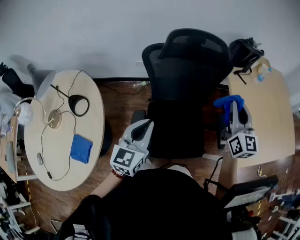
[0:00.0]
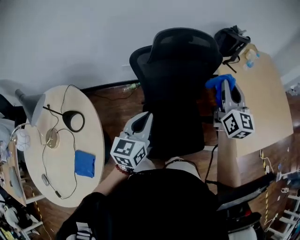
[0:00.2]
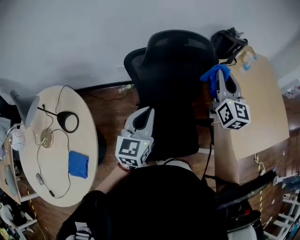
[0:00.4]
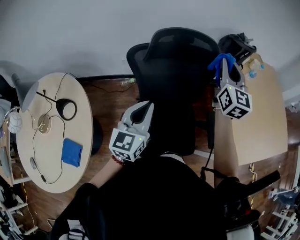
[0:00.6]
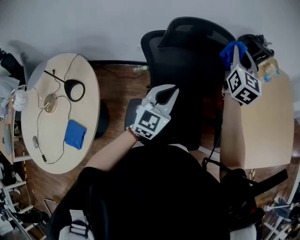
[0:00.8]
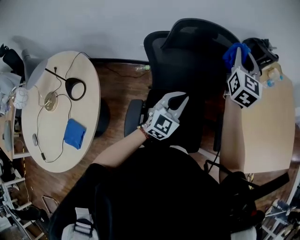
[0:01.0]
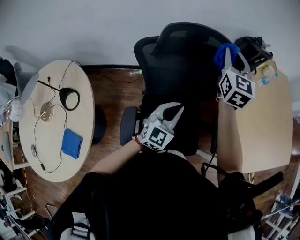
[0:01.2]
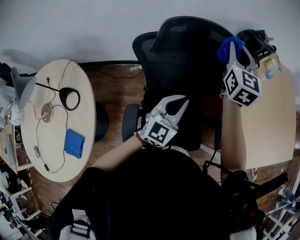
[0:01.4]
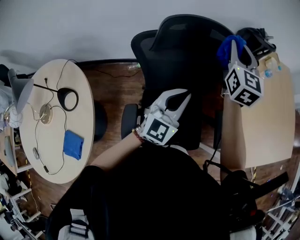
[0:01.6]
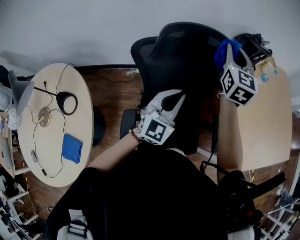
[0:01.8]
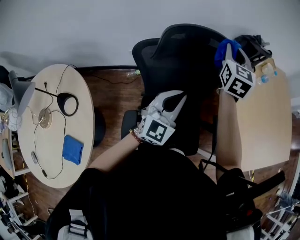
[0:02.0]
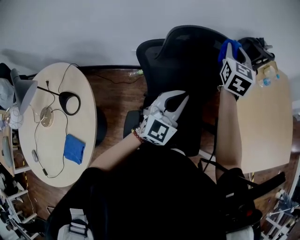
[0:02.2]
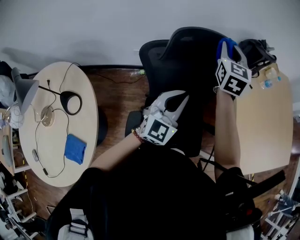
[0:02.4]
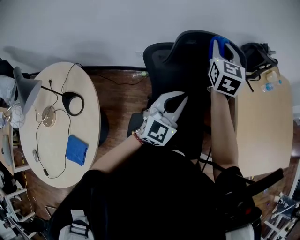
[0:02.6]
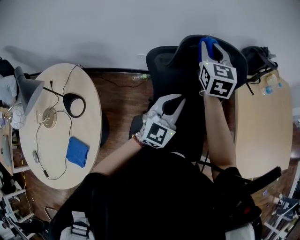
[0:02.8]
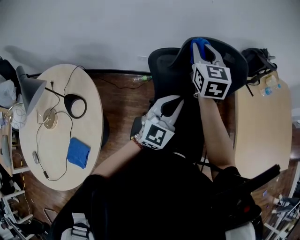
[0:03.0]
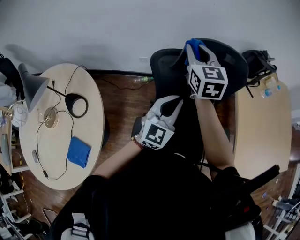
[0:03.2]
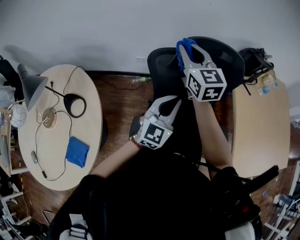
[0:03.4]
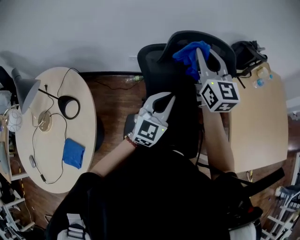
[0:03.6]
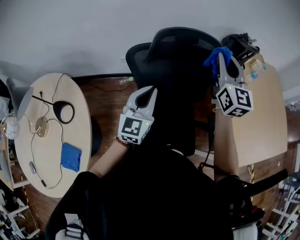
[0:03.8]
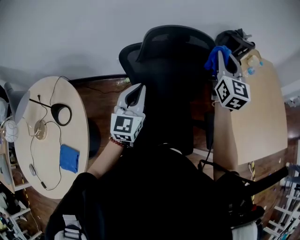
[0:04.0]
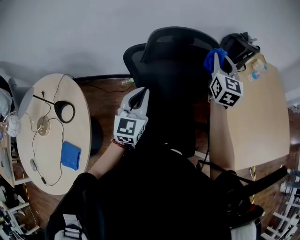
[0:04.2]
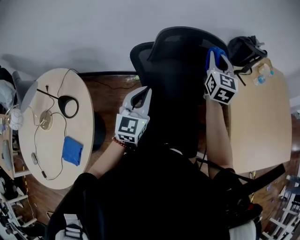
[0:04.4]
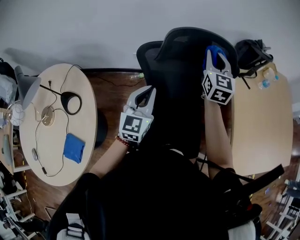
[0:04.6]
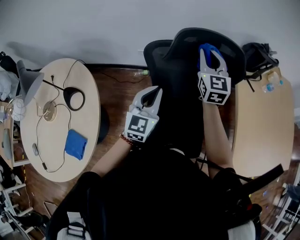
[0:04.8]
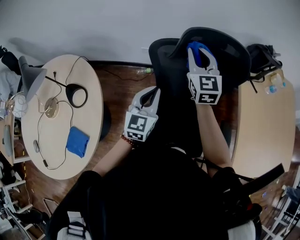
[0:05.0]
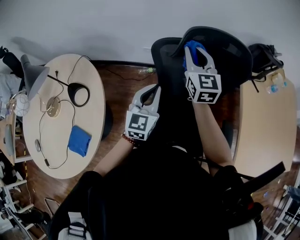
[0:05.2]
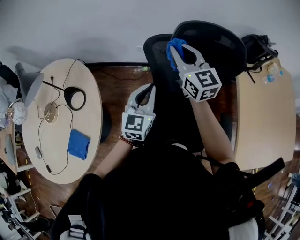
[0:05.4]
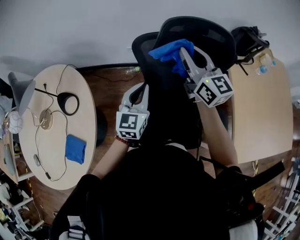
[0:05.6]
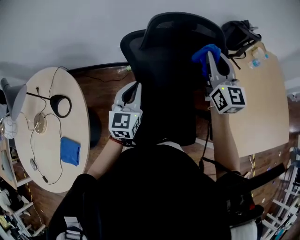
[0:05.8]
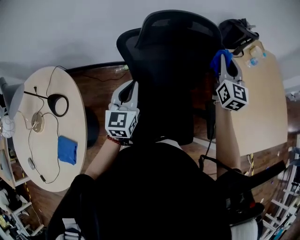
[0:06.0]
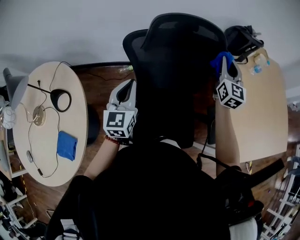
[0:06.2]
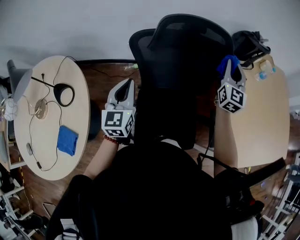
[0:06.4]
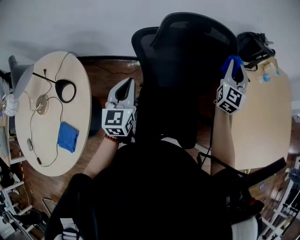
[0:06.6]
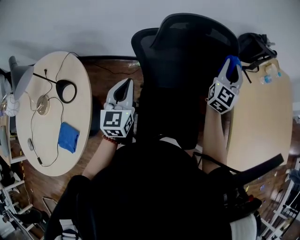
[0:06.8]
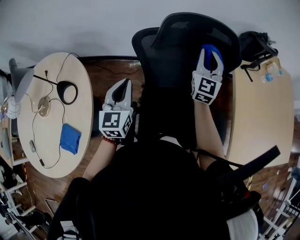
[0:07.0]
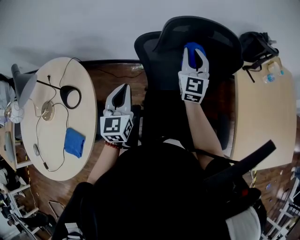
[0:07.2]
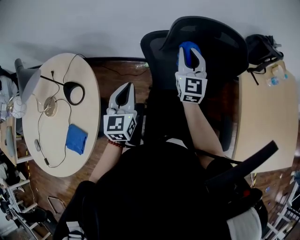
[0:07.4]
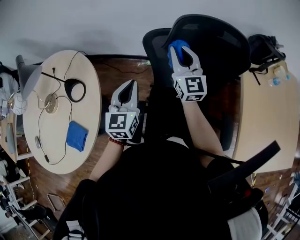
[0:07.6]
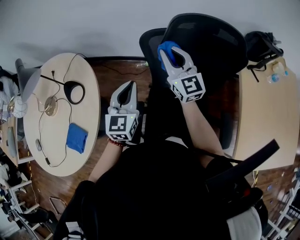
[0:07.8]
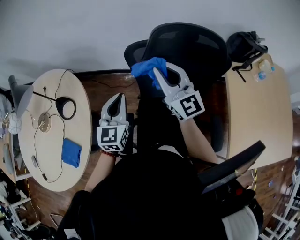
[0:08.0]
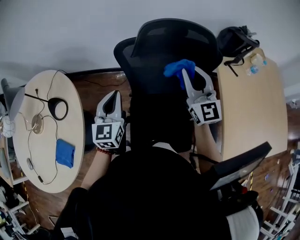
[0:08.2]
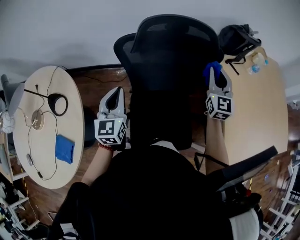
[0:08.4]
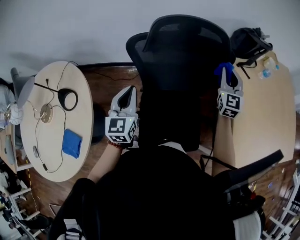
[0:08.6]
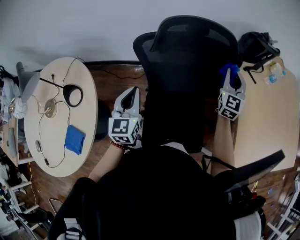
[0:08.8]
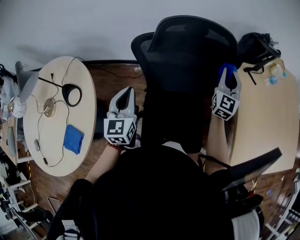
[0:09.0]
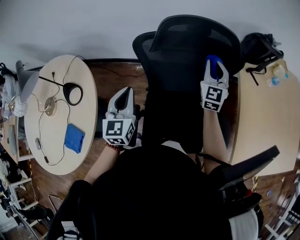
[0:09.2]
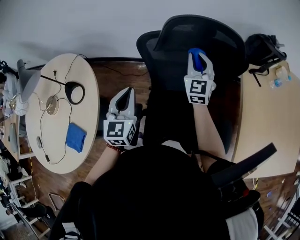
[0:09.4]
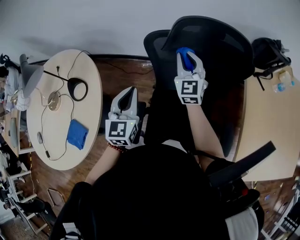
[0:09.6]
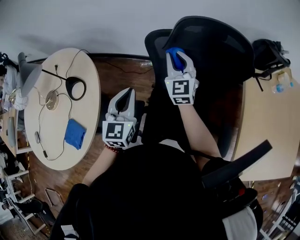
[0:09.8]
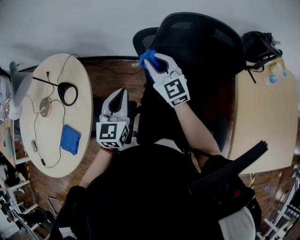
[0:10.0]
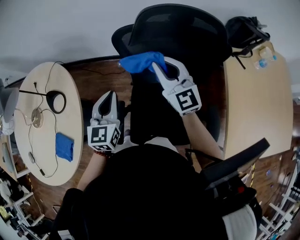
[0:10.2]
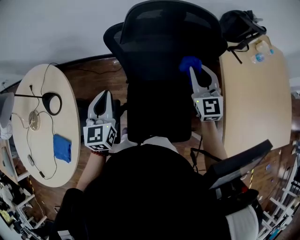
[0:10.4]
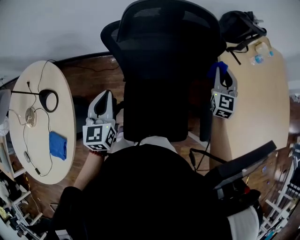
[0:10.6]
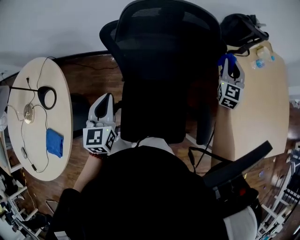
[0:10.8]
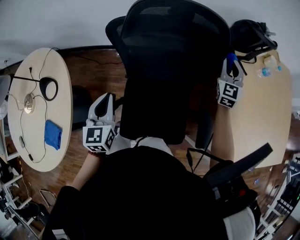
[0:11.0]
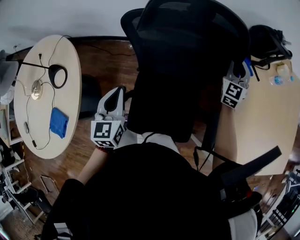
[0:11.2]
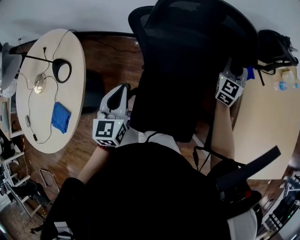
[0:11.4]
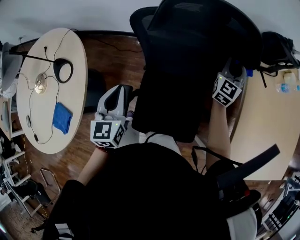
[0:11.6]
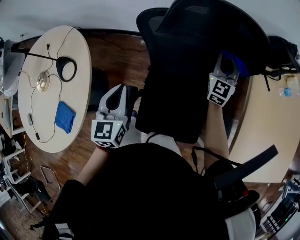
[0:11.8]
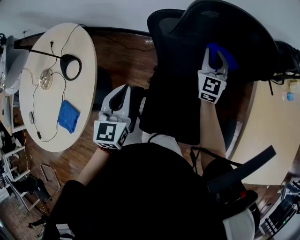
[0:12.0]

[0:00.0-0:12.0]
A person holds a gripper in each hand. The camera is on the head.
0:00.0 to 0:01.6: The left gripper shifts roughly 20 cm forward and to the right, and turns by about 20 degrees. The right gripper is displaced forward and to the left by approximately 25 cm.
0:01.6 to 0:03.0: The left gripper heads to the left, covering approximately 10 cm, while the right gripper heads to the left, covering about 20 cm.
0:03.0 to 0:04.4: The right gripper swings left and right, about 25 cm each way, with 2 reversals.
0:04.4 to 0:06.0: The right gripper moves backward, roughly 5 cm, and reaches roughly 20 cm to the left, then returns.
0:06.0 to 0:07.6: The right gripper is displaced to the left by some 30 cm, and swivels roughly 30 degrees, while the left gripper shifts some 10 cm to the left.
0:07.6 to 0:09.0: The right gripper goes about 25 cm to the right, and changes its angle by roughly 30 degrees.
0:09.0 to 0:10.4: The right gripper moves some 35 cm to the left and comes back, and turns by roughly 20 degrees.
0:10.4 to 0:12.0: The right gripper moves forward and downward, roughly 15 cm, and reaches roughly 20 cm to the right, then returns.

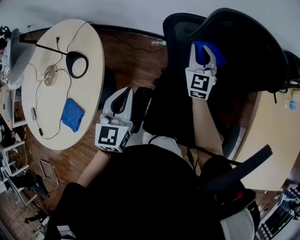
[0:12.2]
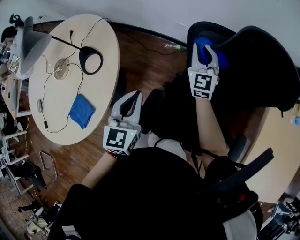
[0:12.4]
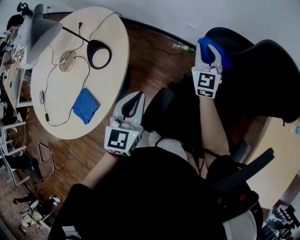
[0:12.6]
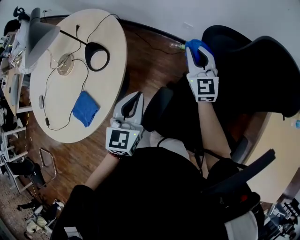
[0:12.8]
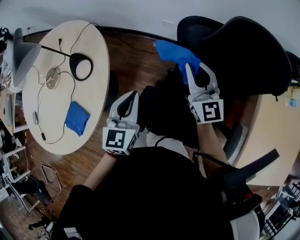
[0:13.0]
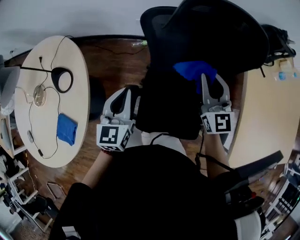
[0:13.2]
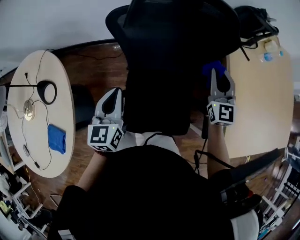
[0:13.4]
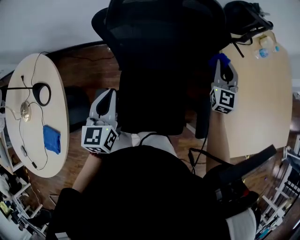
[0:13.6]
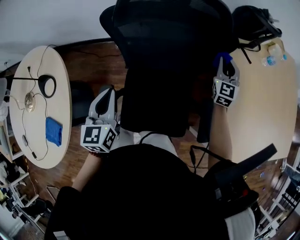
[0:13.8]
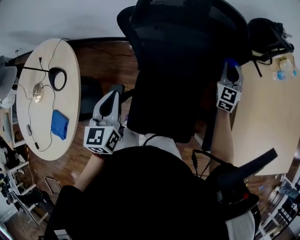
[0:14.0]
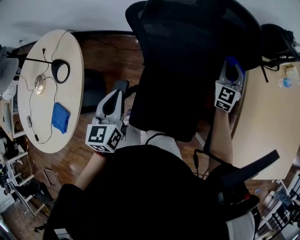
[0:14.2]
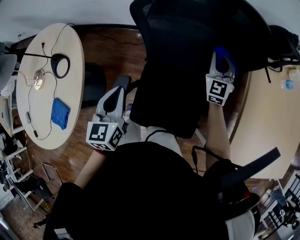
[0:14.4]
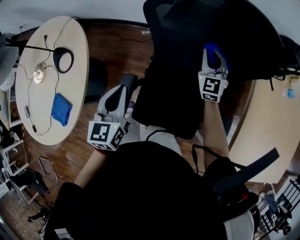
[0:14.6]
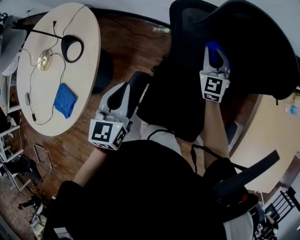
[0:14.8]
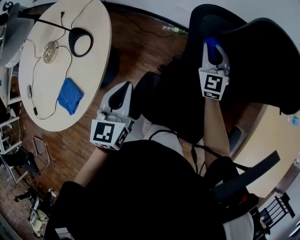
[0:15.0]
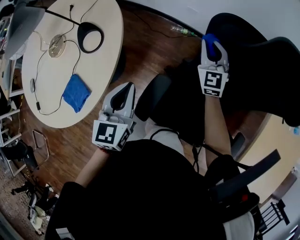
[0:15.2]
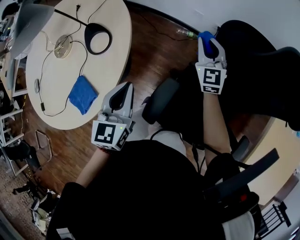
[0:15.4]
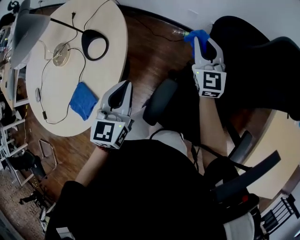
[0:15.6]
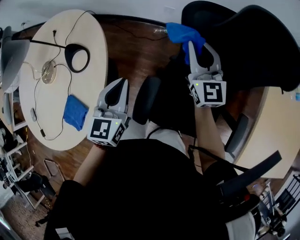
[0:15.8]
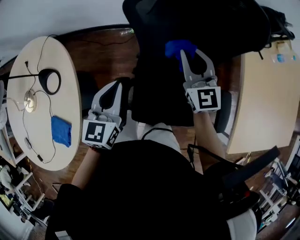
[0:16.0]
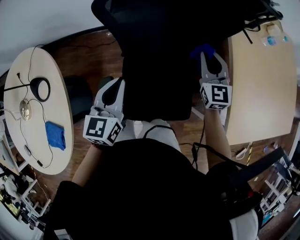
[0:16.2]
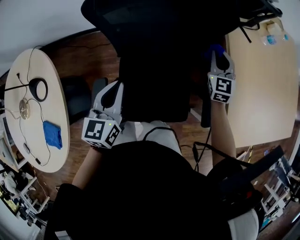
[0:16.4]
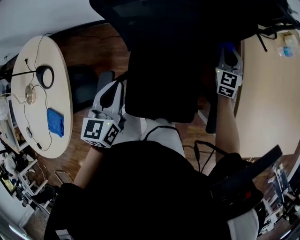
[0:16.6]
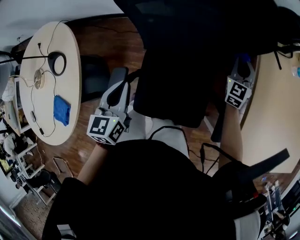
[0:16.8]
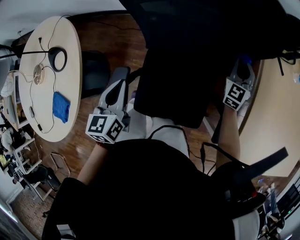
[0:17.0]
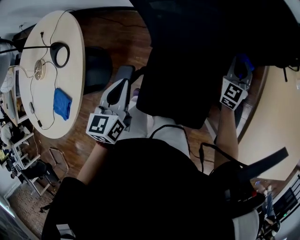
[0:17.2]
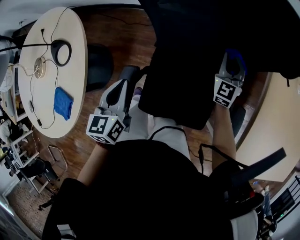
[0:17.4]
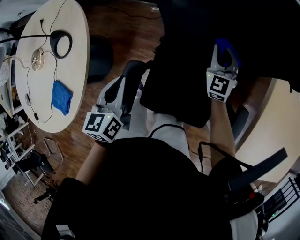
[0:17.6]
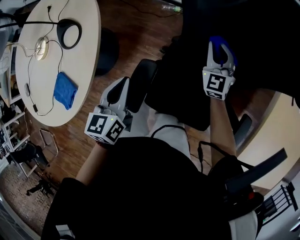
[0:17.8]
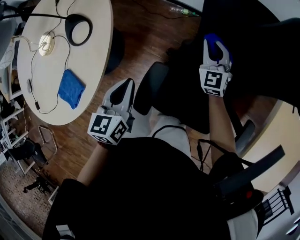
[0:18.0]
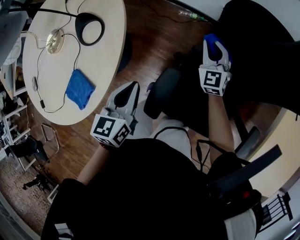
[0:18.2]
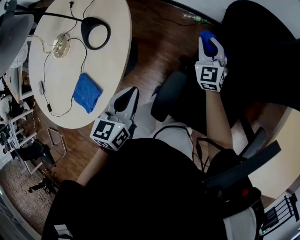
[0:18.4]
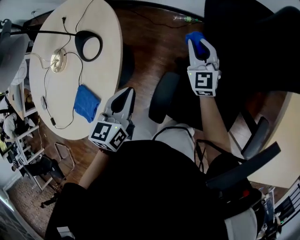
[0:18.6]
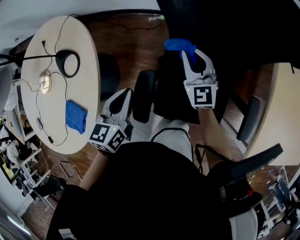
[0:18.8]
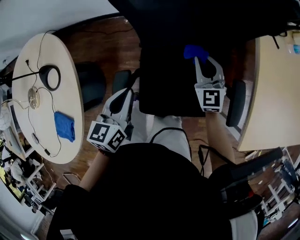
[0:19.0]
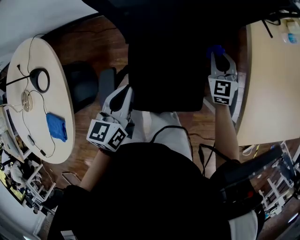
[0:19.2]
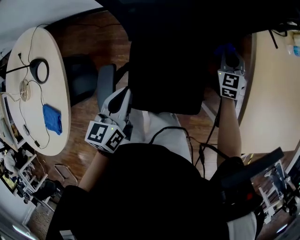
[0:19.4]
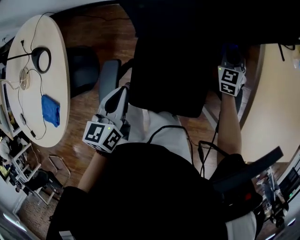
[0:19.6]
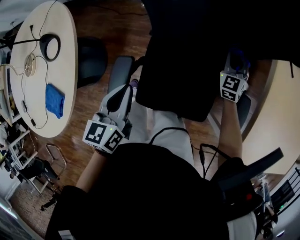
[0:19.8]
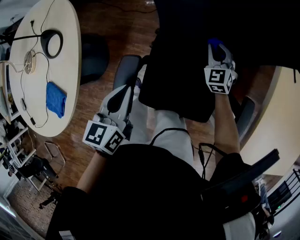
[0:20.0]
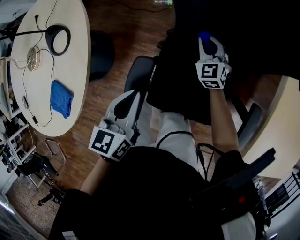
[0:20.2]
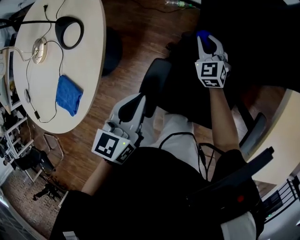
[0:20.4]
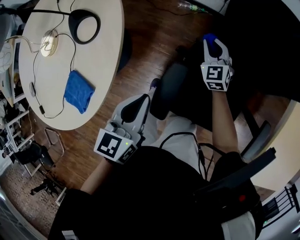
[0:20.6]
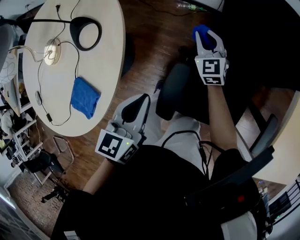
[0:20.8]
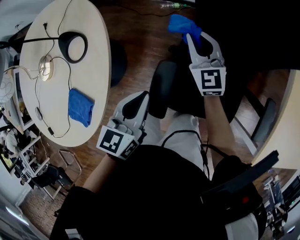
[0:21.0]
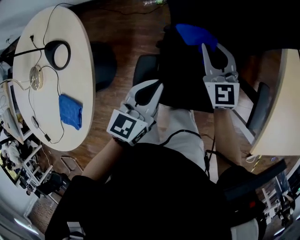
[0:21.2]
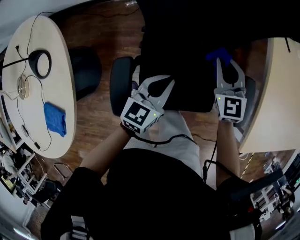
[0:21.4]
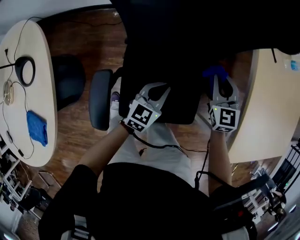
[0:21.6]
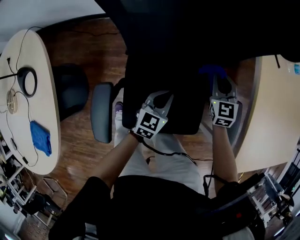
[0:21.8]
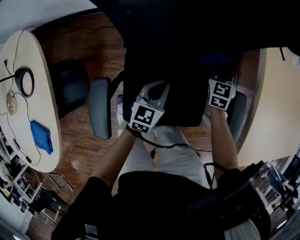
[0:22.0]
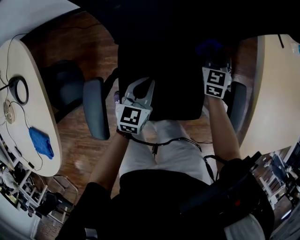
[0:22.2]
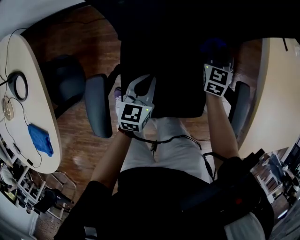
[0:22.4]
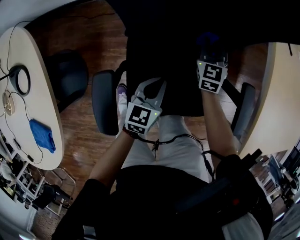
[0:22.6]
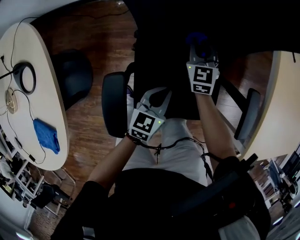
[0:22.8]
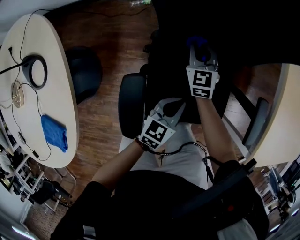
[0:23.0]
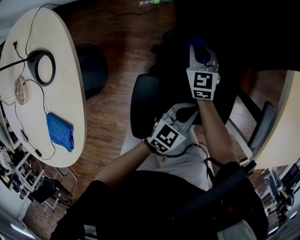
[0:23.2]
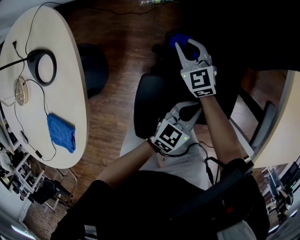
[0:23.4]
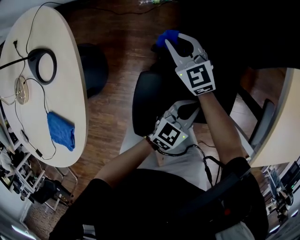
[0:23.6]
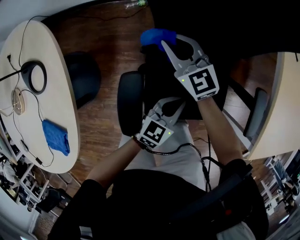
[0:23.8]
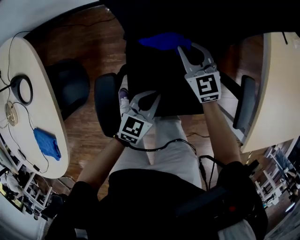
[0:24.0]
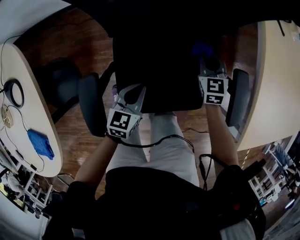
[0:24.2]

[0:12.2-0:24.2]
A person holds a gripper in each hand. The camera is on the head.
0:12.2 to 0:13.8: The right gripper moves some 5 cm upward and comes back, and turns by about 20 degrees; the left gripper changes place by some 15 cm.
0:13.8 to 0:15.2: The left gripper shifts by some 20 cm; the right gripper moves approximately 50 cm, and changes its angle by some 40 degrees.
0:15.2 to 0:16.6: The left gripper shifts by some 25 cm, and turns by about 20 degrees. Meanwhile the right gripper moves about 50 cm, and swivels about 40 degrees.
0:16.6 to 0:18.2: The left gripper shifts by approximately 25 cm, and rotates some 20 degrees, while the right gripper ends up roughly 50 cm from where it was, and swivels roughly 40 degrees.
0:18.2 to 0:19.8: The right gripper ends up approximately 35 cm from where it was, and turns by roughly 30 degrees. Meanwhile the left gripper moves roughly 15 cm.
0:19.8 to 0:21.2: The left gripper moves approximately 15 cm to the left and comes back, and rotates roughly 20 degrees, while the right gripper travels to the left and upward by some 25 cm, and changes its angle by some 30 degrees.
0:21.2 to 0:22.6: The two grippers go approximately 25 cm downward, to the right and forward. The right gripper turns by some 30 degrees.
0:22.6 to 0:24.2: The right gripper shifts about 10 cm backward, and moves approximately 30 cm to the left and comes back. Meanwhile the left gripper ends up roughly 5 cm from where it was.
